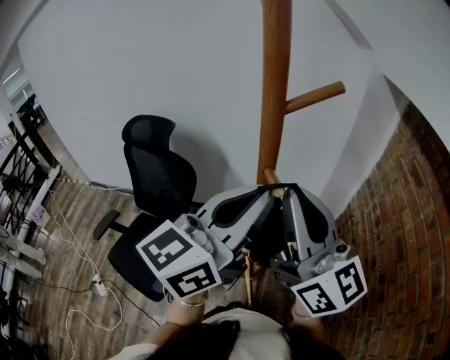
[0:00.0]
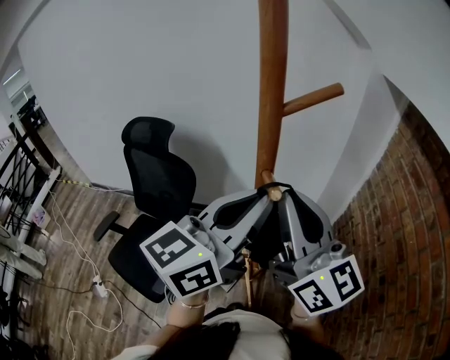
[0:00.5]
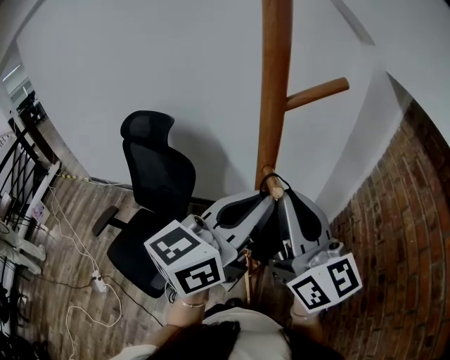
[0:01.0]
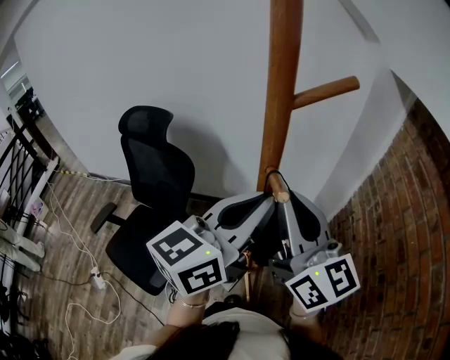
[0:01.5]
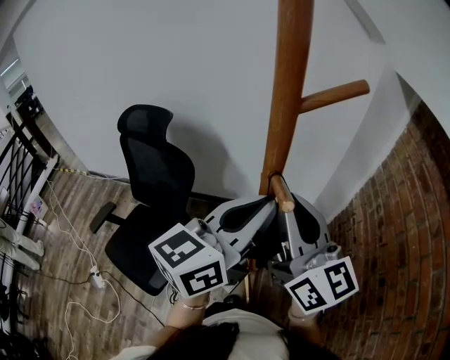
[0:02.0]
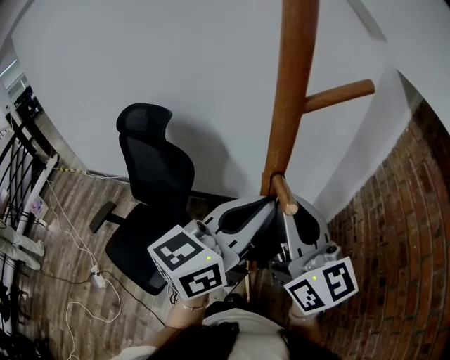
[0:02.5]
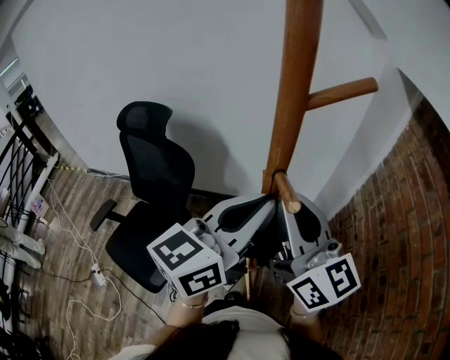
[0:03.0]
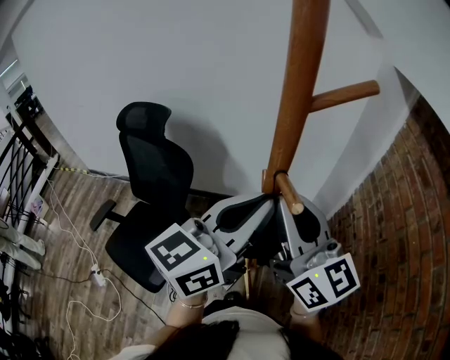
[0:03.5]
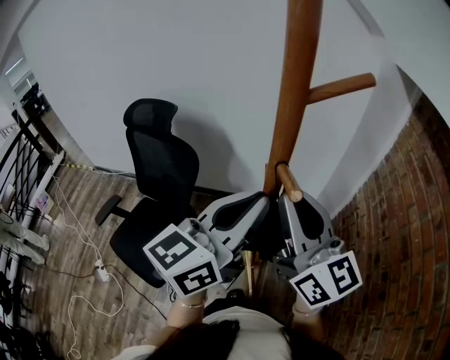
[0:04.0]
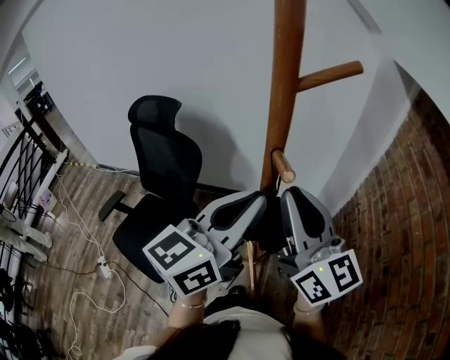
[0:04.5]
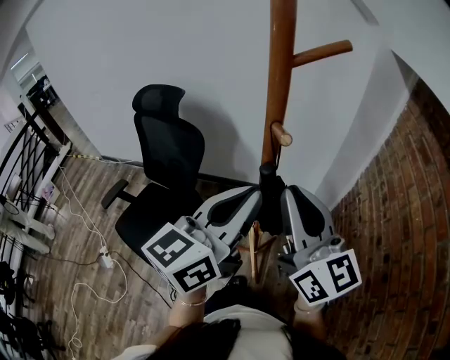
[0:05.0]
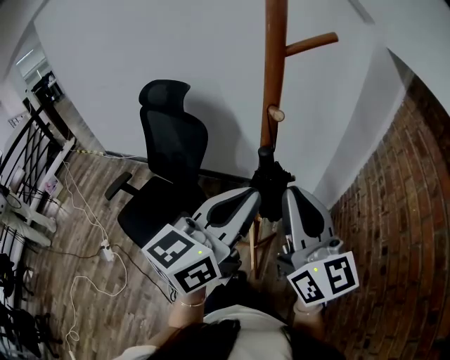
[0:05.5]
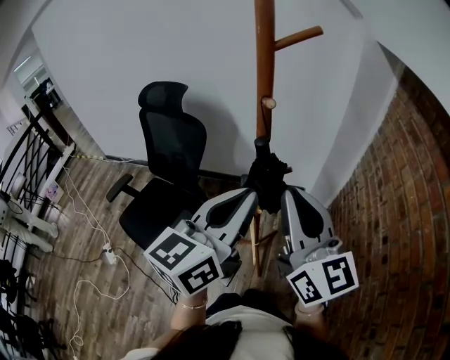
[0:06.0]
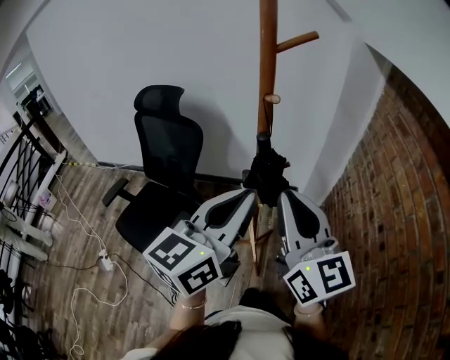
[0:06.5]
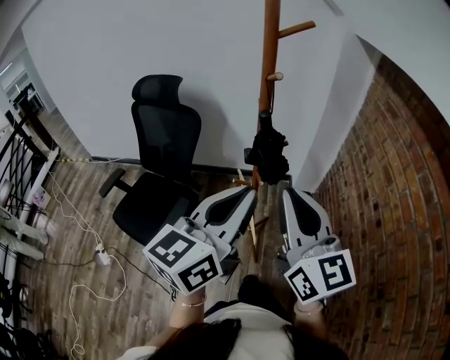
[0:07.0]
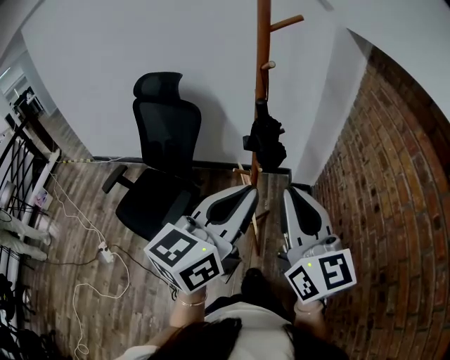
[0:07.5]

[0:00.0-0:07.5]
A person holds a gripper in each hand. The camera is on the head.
0:00.0 to 0:02.0: Both grippers travel together downward, roughly 5 cm.
0:02.0 to 0:04.0: There are only small adjustments of the grippers.
0:04.0 to 0:05.5: The grippers both shift backward by approximately 10 cm.
0:05.5 to 0:07.5: Both grippers move backward, roughly 15 cm.

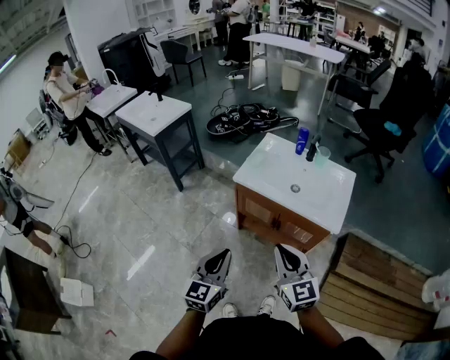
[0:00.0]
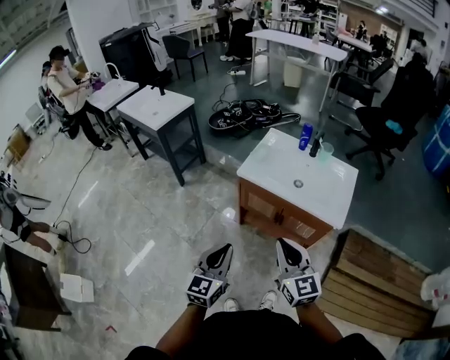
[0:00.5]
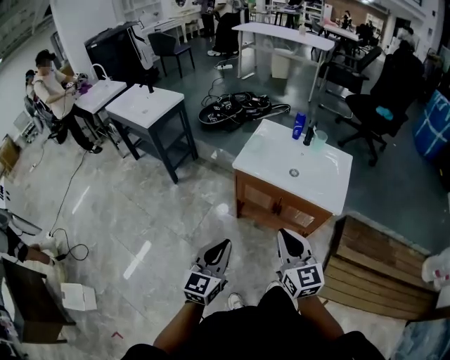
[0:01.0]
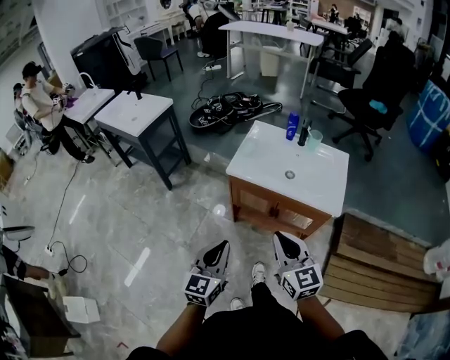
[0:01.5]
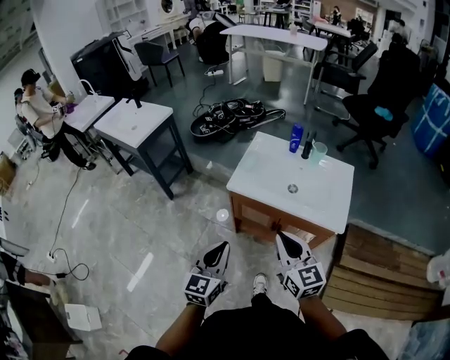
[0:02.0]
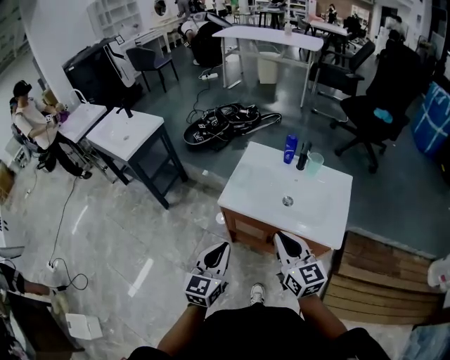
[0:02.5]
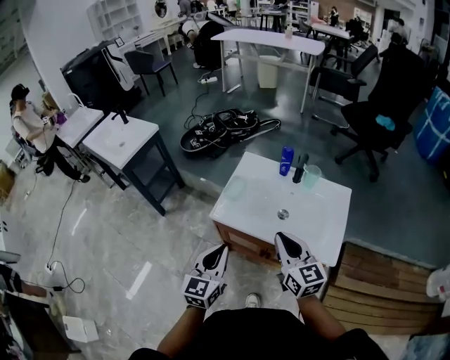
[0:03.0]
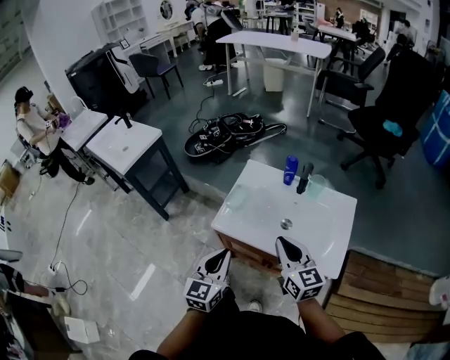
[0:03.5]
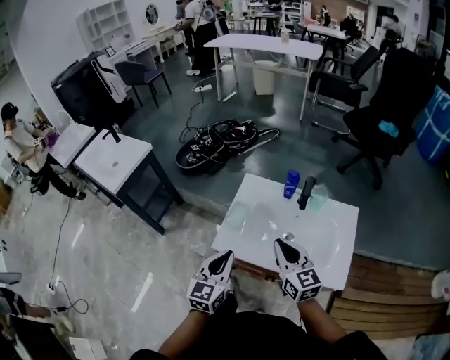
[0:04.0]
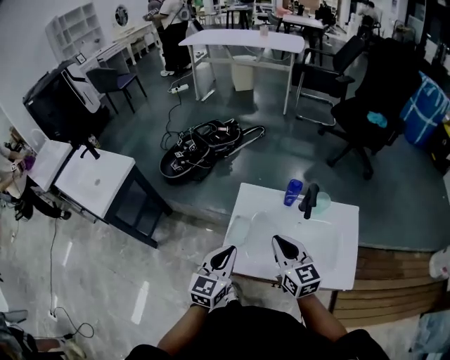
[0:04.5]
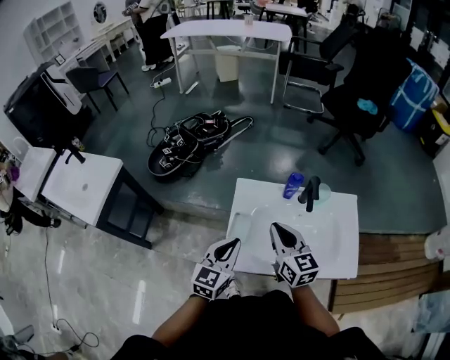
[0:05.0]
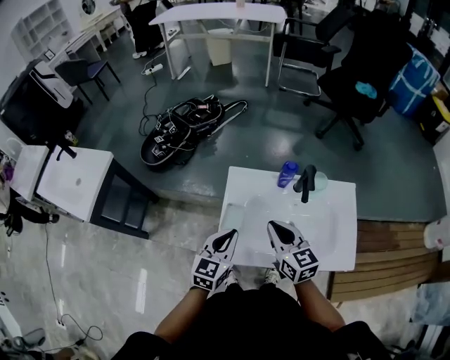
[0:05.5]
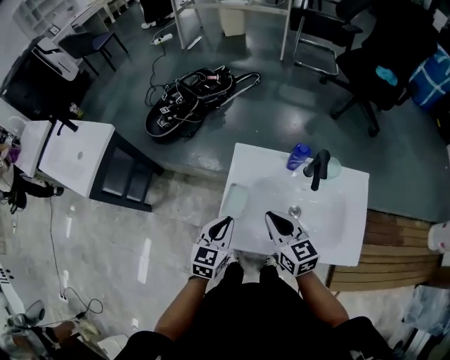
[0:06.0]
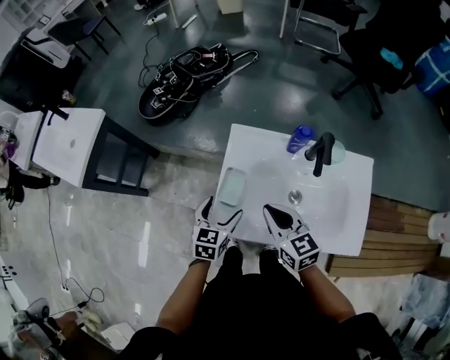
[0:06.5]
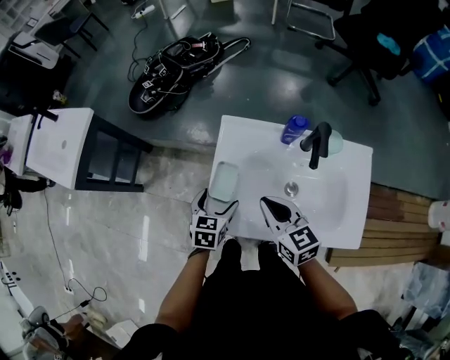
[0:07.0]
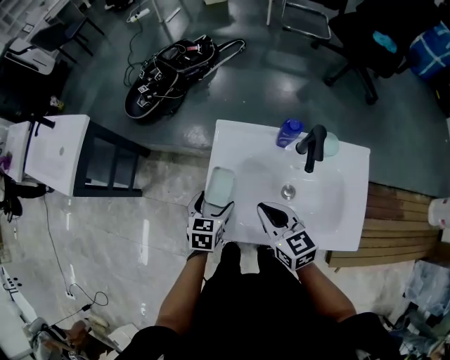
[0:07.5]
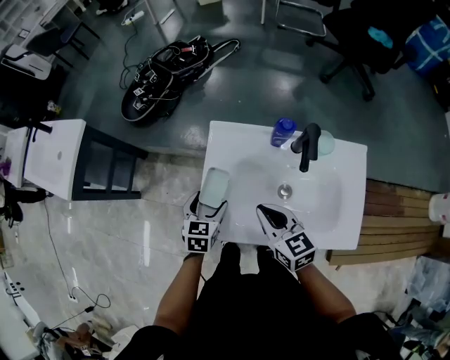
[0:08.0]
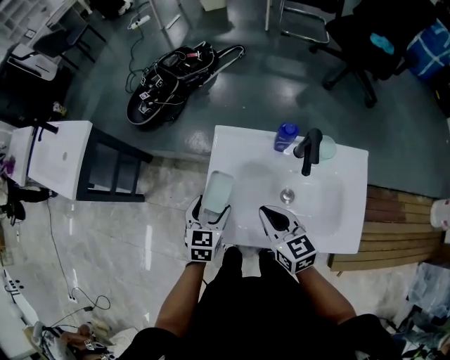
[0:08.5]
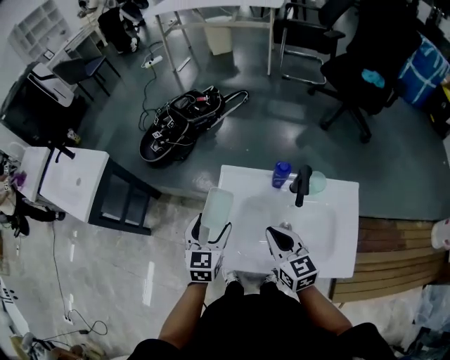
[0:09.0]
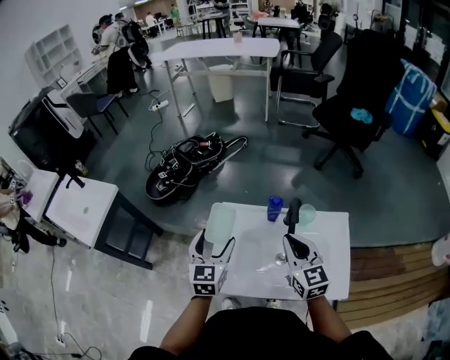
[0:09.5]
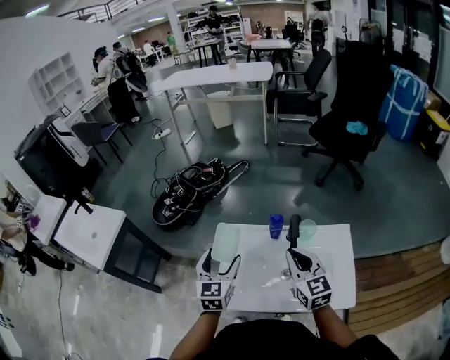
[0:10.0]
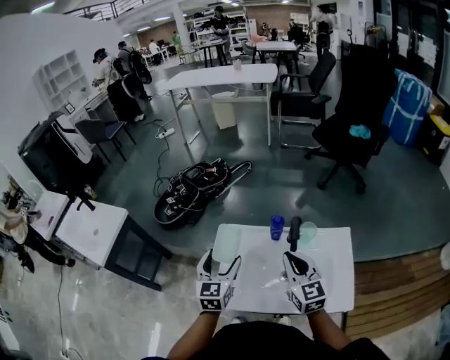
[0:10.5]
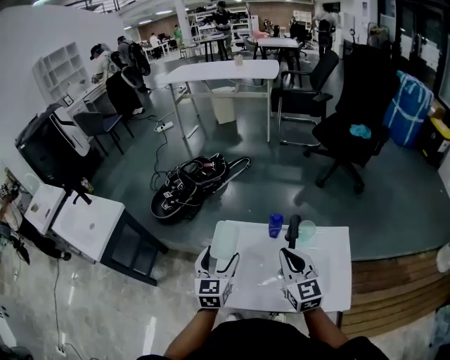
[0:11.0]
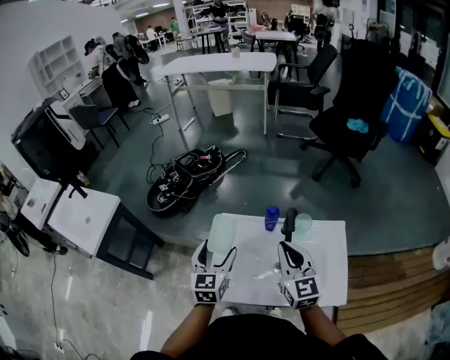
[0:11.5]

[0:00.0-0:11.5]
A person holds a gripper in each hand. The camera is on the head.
0:00.0 to 0:02.0: The grippers both shift forward by roughly 10 cm.
0:02.0 to 0:04.0: Both grippers travel together forward, some 25 cm.
0:04.0 to 0:06.0: The left gripper goes roughly 15 cm forward and downward, while the right gripper goes approximately 15 cm forward, downward and to the left.
0:06.0 to 0:07.5: The left gripper is displaced downward by about 10 cm, and opens.
0:07.5 to 0:09.5: The right gripper travels upward and to the right by about 15 cm, and swivels some 20 degrees, while the left gripper goes roughly 20 cm upward, and rotates about 30 degrees.
0:09.5 to 0:11.5: The grippers make only small movements.

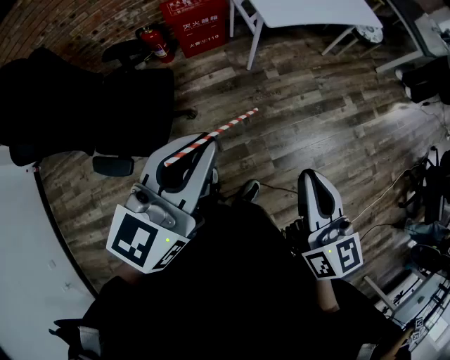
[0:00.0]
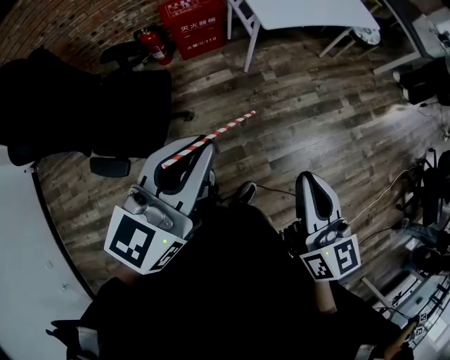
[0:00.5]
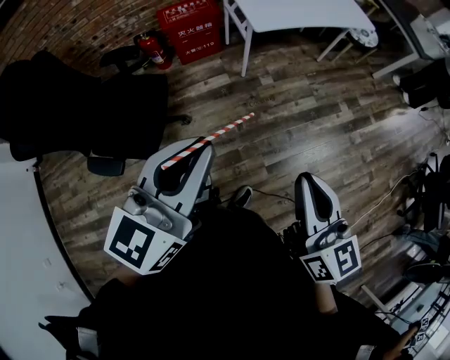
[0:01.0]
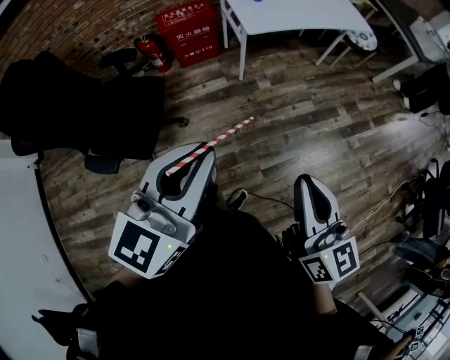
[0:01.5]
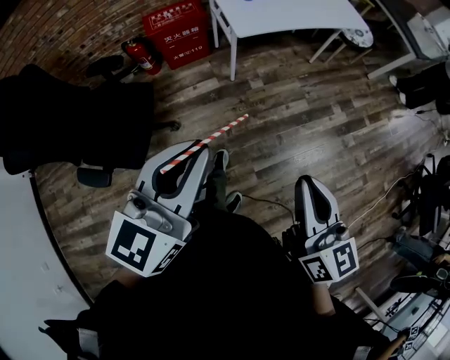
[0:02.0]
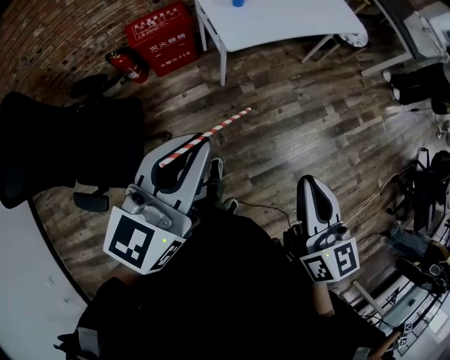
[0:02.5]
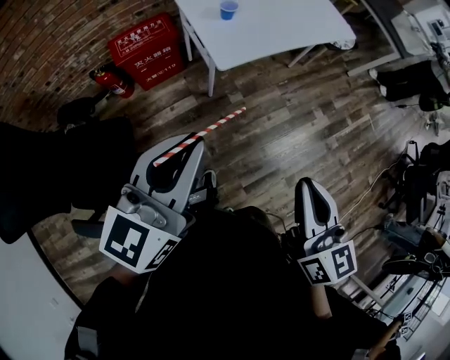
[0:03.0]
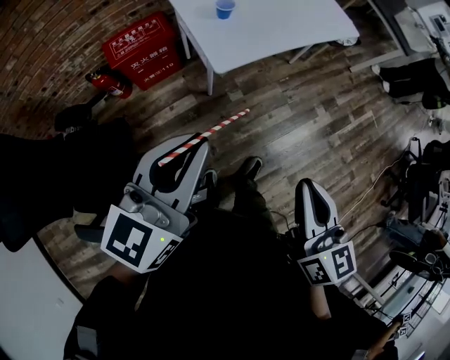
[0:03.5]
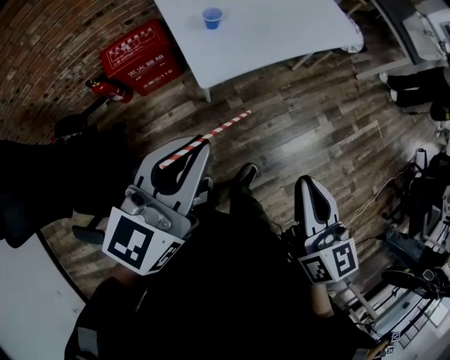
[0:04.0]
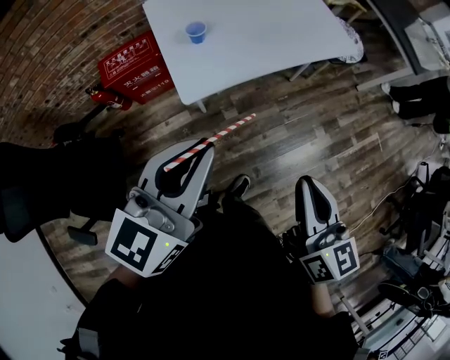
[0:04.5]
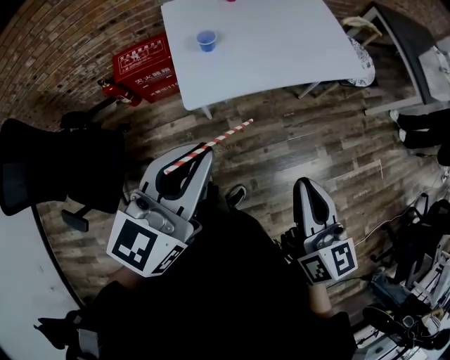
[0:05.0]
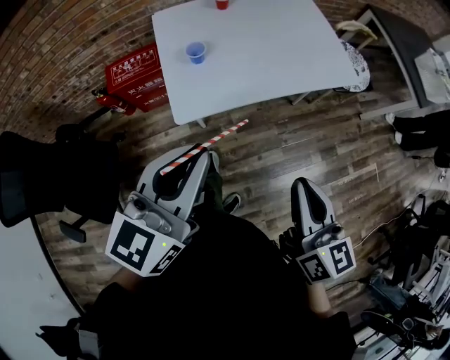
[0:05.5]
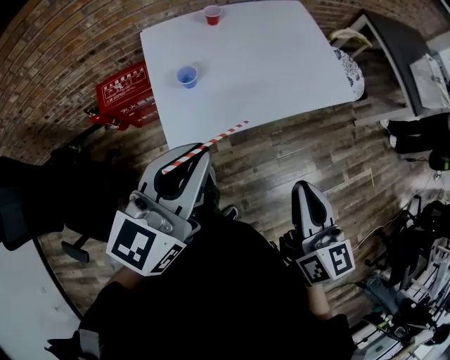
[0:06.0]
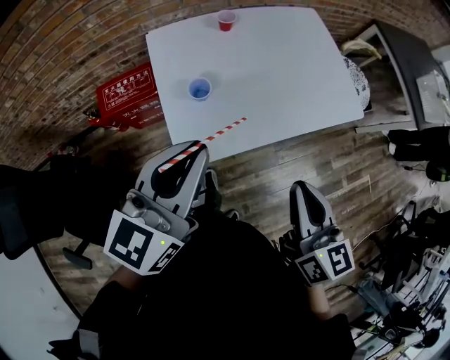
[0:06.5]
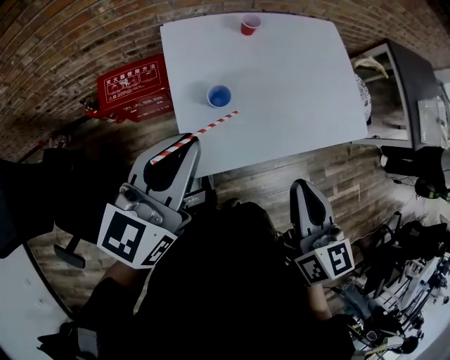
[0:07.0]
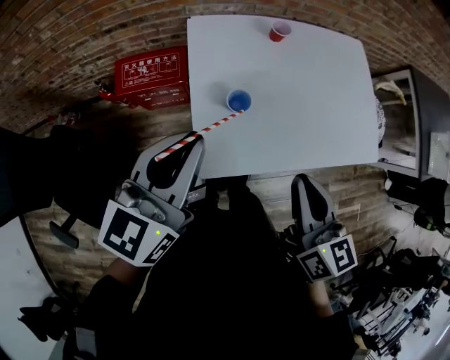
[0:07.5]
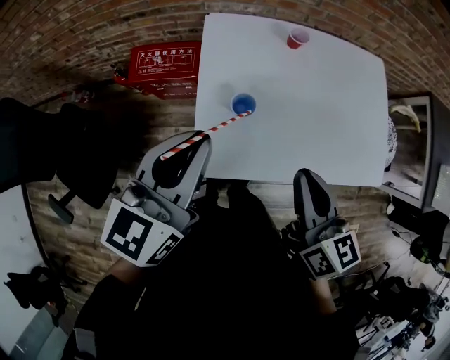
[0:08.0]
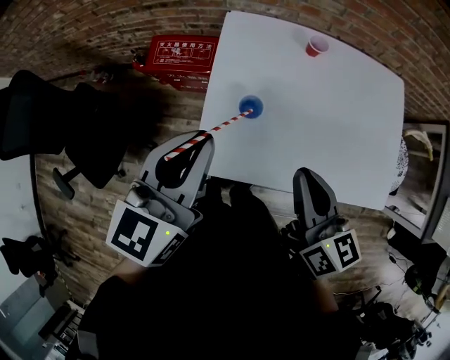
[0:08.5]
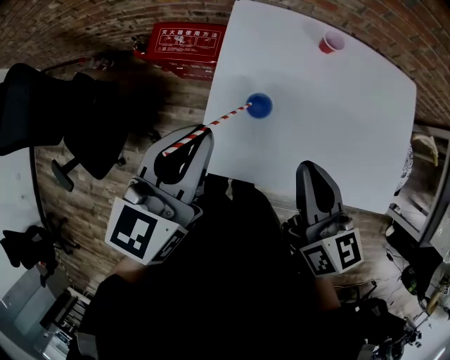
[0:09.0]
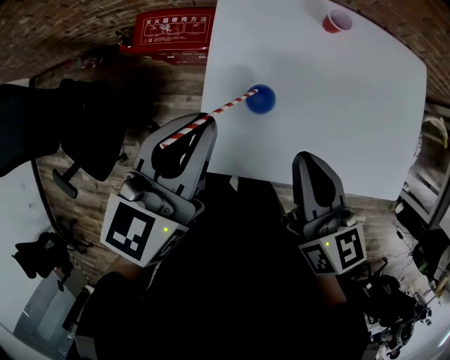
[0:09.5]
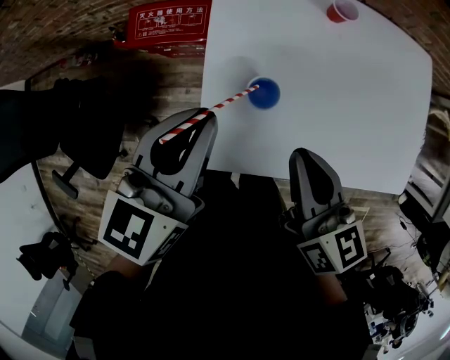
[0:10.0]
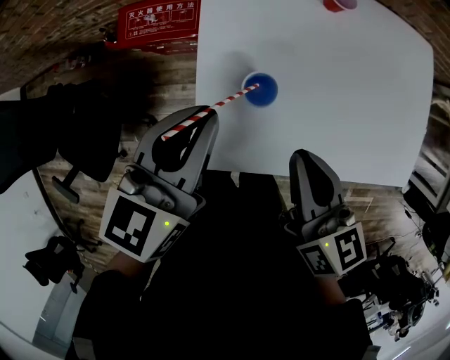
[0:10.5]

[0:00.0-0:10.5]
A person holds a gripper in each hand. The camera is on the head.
0:00.0 to 0:02.0: The two grippers go some 15 cm to the right.
0:02.0 to 0:04.0: Both grippers travel together forward, some 35 cm.
0:04.0 to 0:06.5: The grippers both shift forward by some 30 cm.
0:06.5 to 0:08.5: The left gripper moves some 15 cm, and changes its angle by about 30 degrees; the right gripper moves roughly 20 cm, and changes its angle by some 30 degrees.
0:08.5 to 0:10.5: The left gripper moves downward and forward, some 15 cm; the right gripper is displaced downward, forward and to the left by about 10 cm.
